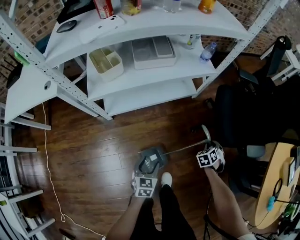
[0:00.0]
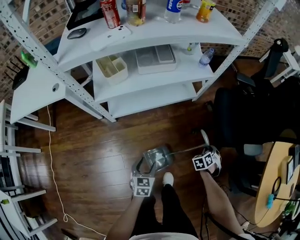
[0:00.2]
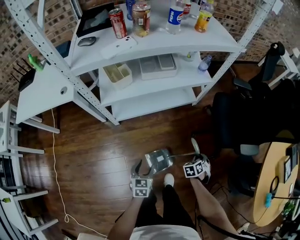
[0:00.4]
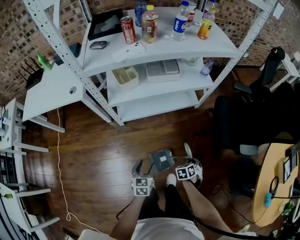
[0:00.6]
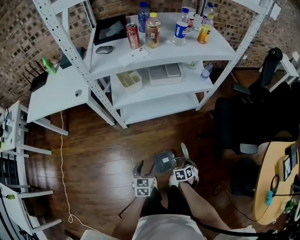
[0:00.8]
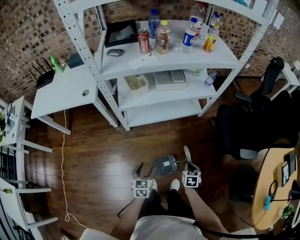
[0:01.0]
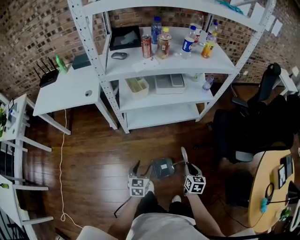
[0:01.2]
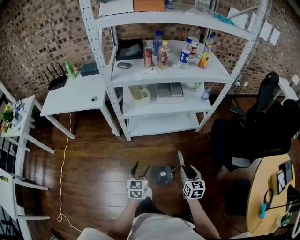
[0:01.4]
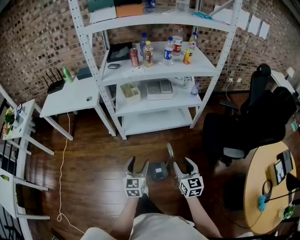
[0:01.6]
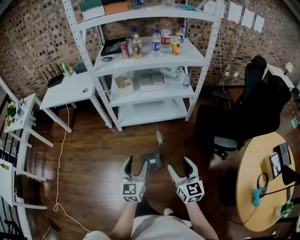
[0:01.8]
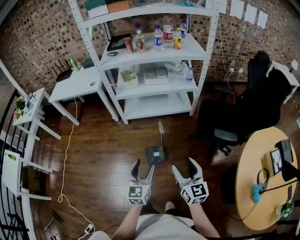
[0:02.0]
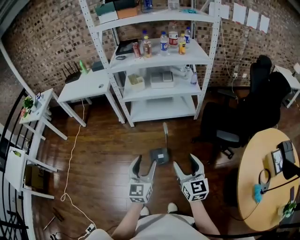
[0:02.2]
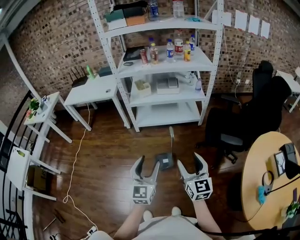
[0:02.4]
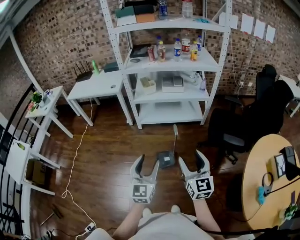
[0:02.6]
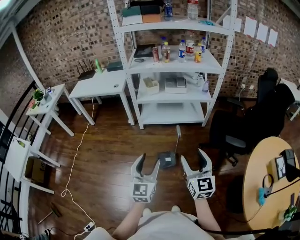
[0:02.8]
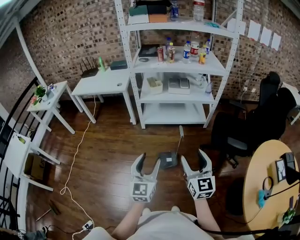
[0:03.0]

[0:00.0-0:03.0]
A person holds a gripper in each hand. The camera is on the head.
0:00.0 to 0:01.6: The grippers both shift upward by approximately 35 cm. The left gripper changes its angle by roughly 30 degrees; the right gripper angles its fingers upward, by roughly 40 degrees.
0:01.6 to 0:03.0: Both grippers move backward and upward, approximately 30 cm.

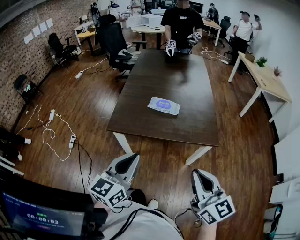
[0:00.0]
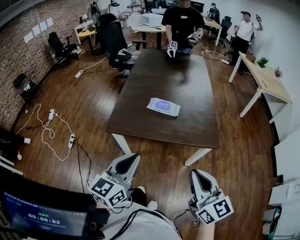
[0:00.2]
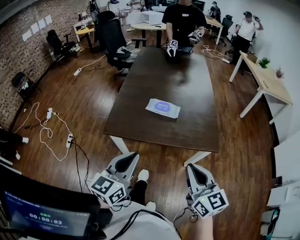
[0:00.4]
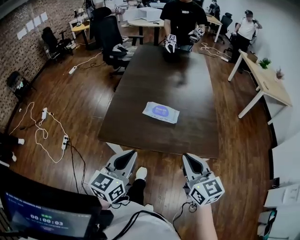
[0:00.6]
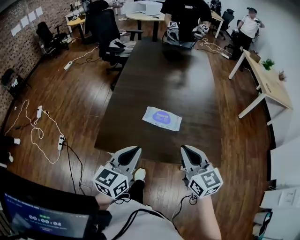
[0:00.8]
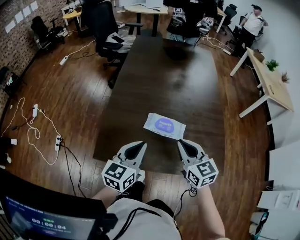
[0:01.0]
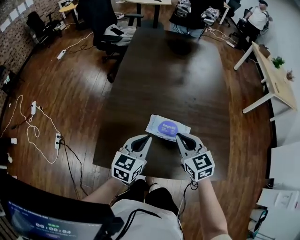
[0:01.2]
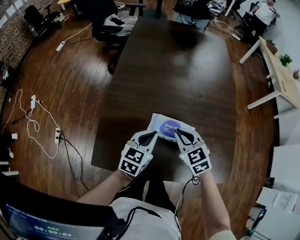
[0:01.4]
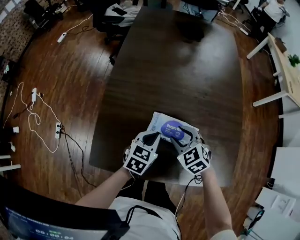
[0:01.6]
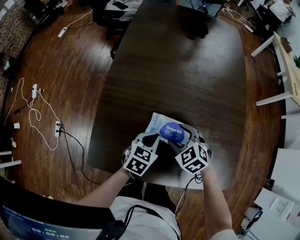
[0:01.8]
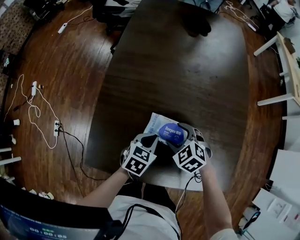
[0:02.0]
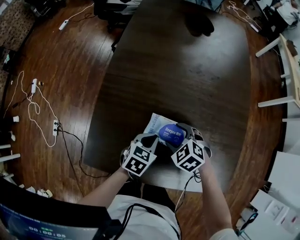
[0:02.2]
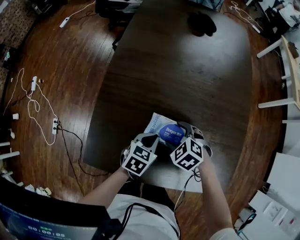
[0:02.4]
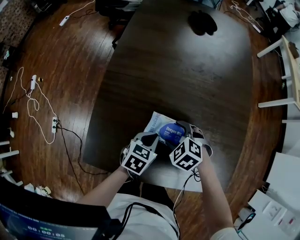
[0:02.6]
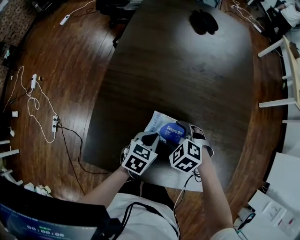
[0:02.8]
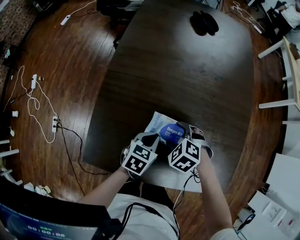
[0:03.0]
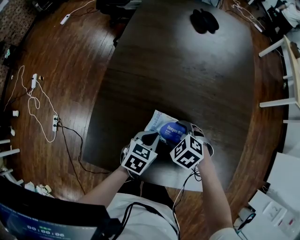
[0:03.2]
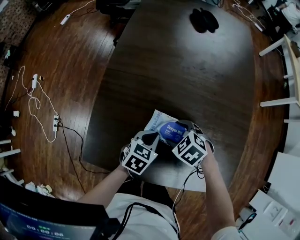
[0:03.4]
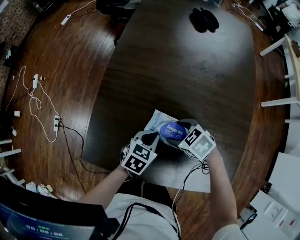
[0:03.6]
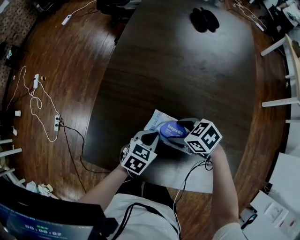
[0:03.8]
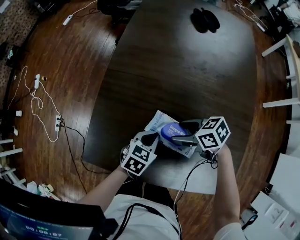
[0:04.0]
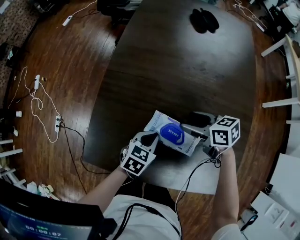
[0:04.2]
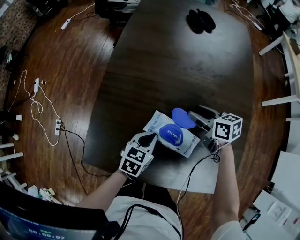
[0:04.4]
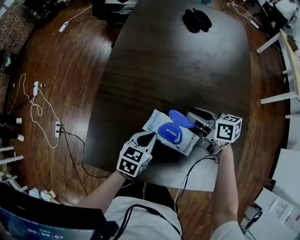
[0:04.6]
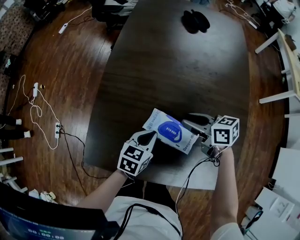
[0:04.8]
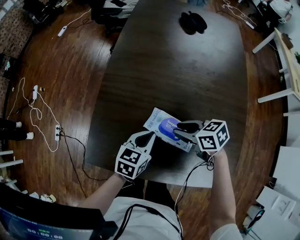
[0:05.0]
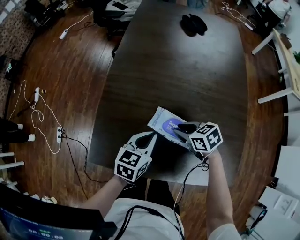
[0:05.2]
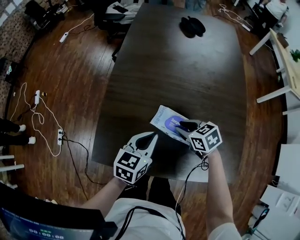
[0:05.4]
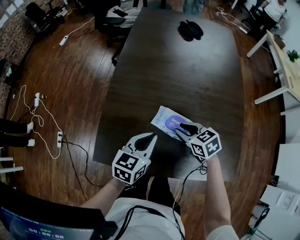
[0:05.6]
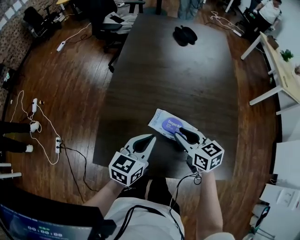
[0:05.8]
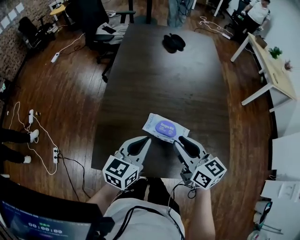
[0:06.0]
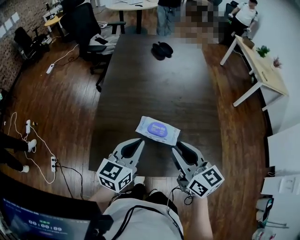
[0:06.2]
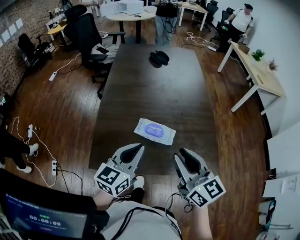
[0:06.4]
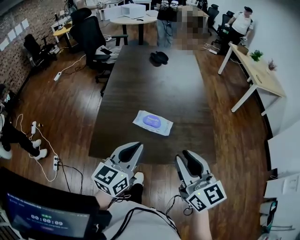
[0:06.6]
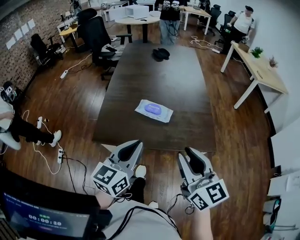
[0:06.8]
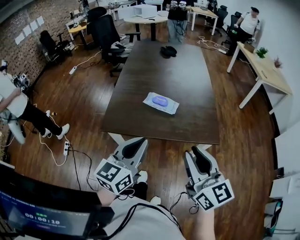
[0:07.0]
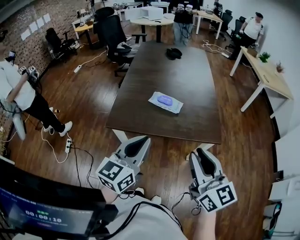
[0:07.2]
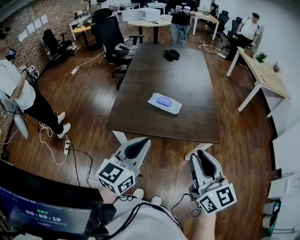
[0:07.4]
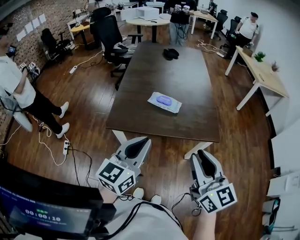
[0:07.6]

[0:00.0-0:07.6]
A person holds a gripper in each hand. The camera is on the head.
0:00.0 to 0:01.6: Both grippers are carried forward, approximately 50 cm. Both grippers travel together downward, about 30 cm. The left gripper tips its fingers downward by approximately 30 degrees. Meanwhile the right gripper points its fingers roughly 50 degrees further downward, and opens up.
0:01.6 to 0:03.0: Both grippers travel together downward, about 5 cm. The right gripper changes its angle by roughly 30 degrees, and opens its fingers.
0:03.0 to 0:04.6: The right gripper ends up roughly 15 cm from where it was, angles its fingers upward, by approximately 40 degrees, and closes its fingers.
0:04.6 to 0:06.0: The right gripper moves backward and upward, approximately 25 cm, and rotates approximately 30 degrees; the left gripper moves upward, about 20 cm, and swivels some 30 degrees.
0:06.0 to 0:07.6: The two grippers go approximately 40 cm backward and upward. The right gripper rotates about 20 degrees.

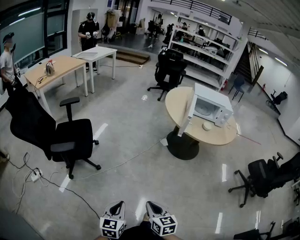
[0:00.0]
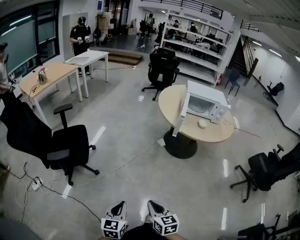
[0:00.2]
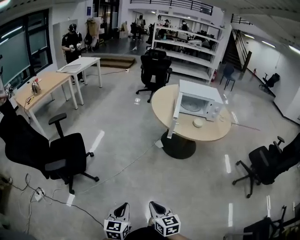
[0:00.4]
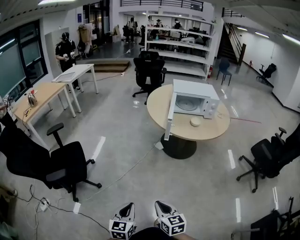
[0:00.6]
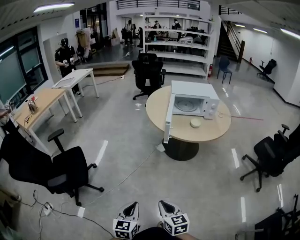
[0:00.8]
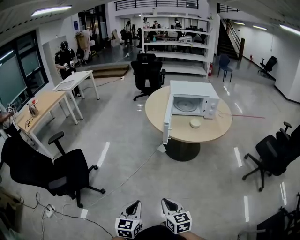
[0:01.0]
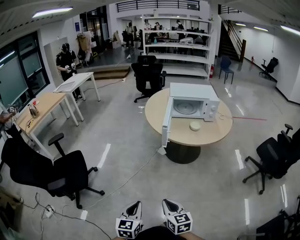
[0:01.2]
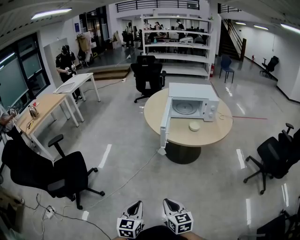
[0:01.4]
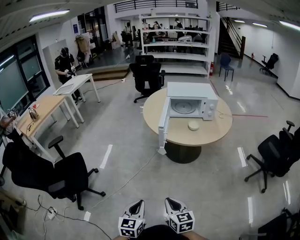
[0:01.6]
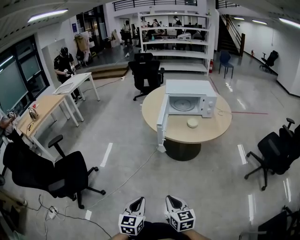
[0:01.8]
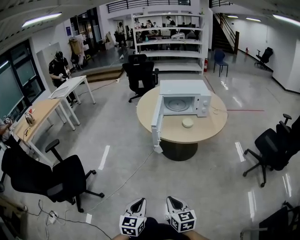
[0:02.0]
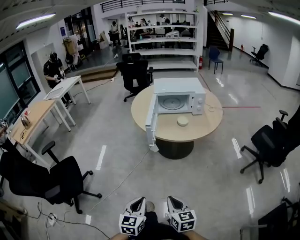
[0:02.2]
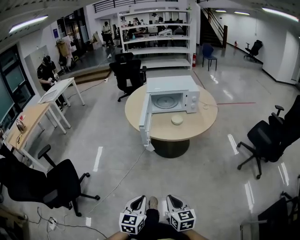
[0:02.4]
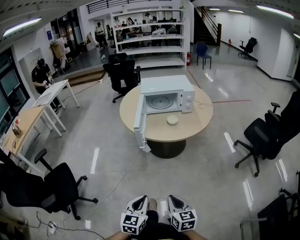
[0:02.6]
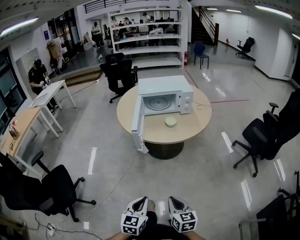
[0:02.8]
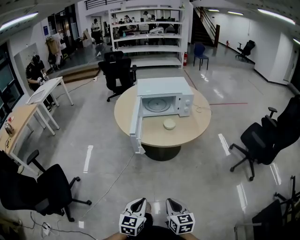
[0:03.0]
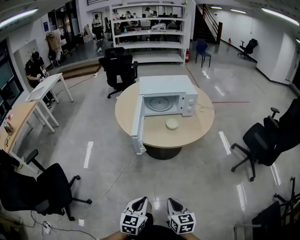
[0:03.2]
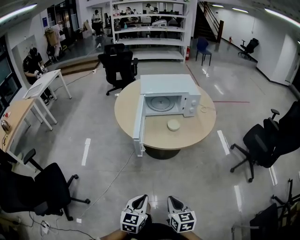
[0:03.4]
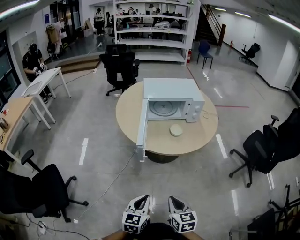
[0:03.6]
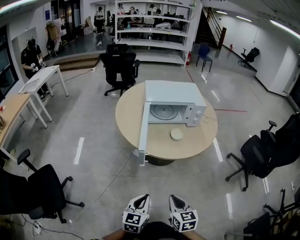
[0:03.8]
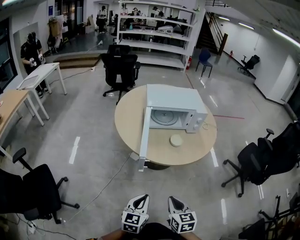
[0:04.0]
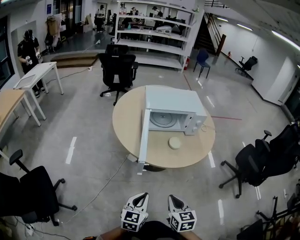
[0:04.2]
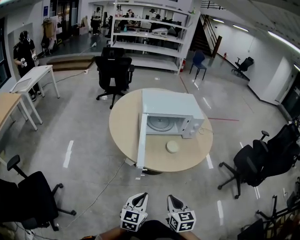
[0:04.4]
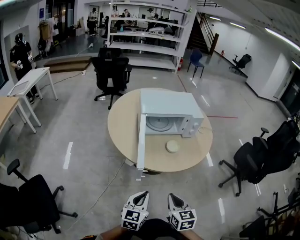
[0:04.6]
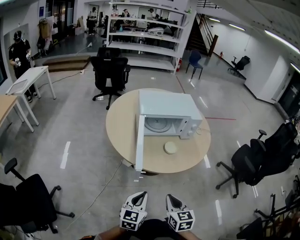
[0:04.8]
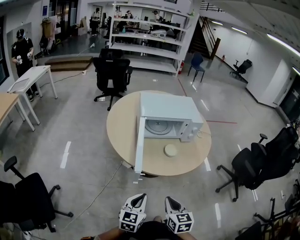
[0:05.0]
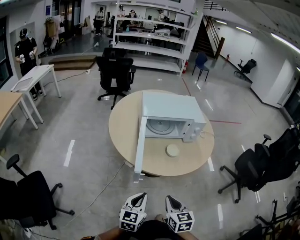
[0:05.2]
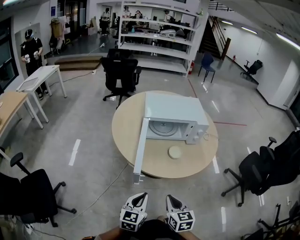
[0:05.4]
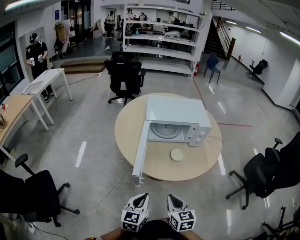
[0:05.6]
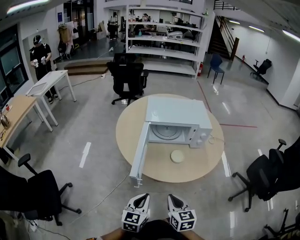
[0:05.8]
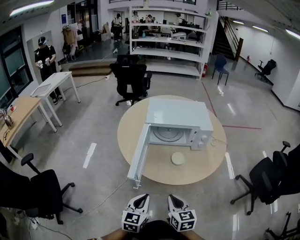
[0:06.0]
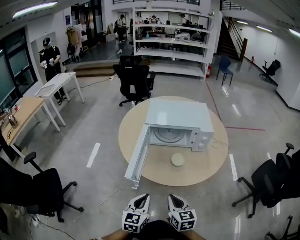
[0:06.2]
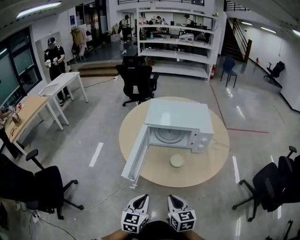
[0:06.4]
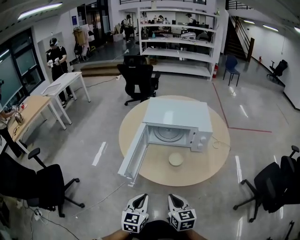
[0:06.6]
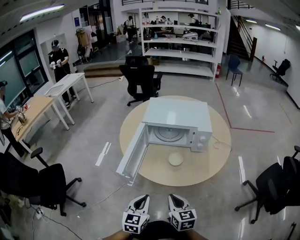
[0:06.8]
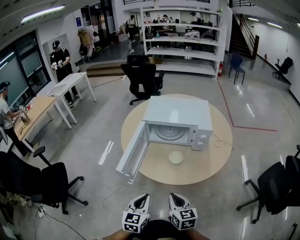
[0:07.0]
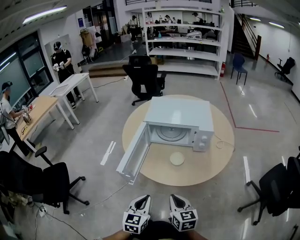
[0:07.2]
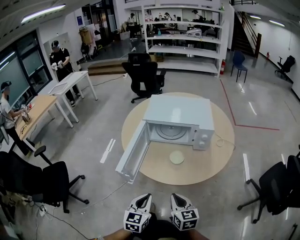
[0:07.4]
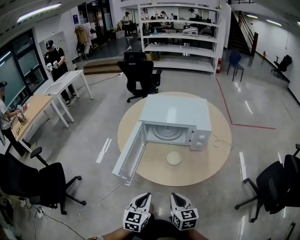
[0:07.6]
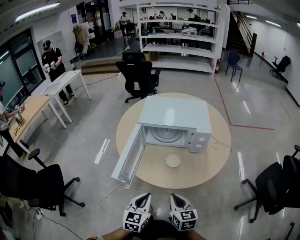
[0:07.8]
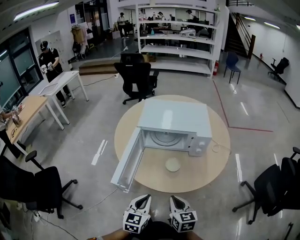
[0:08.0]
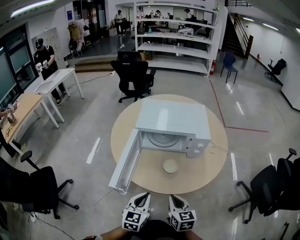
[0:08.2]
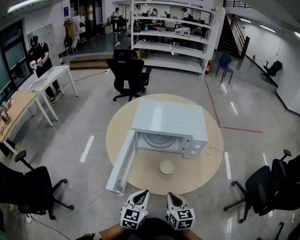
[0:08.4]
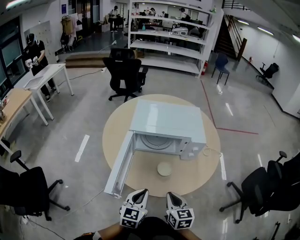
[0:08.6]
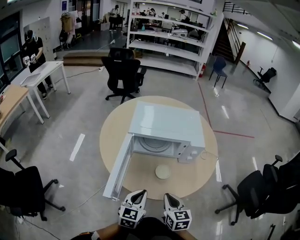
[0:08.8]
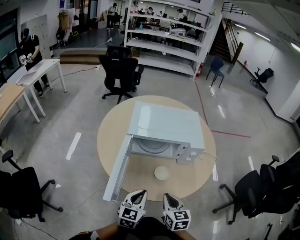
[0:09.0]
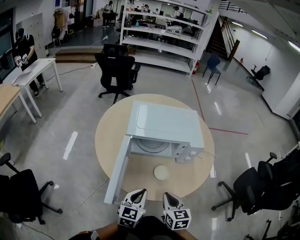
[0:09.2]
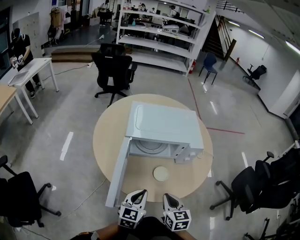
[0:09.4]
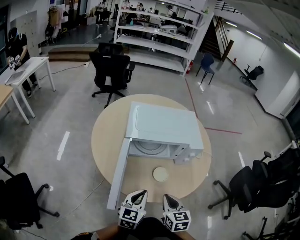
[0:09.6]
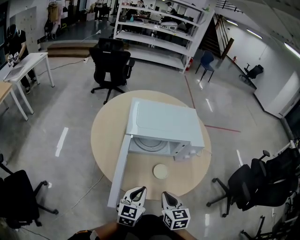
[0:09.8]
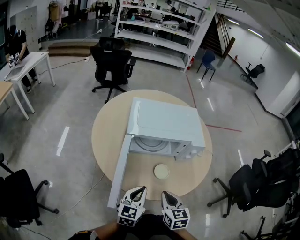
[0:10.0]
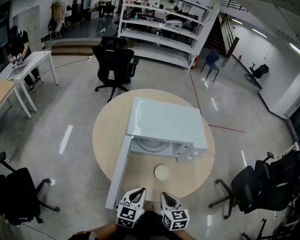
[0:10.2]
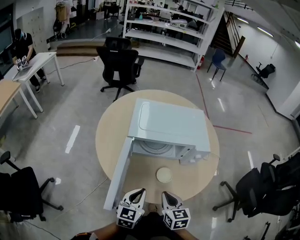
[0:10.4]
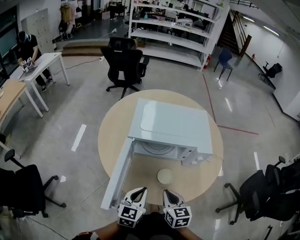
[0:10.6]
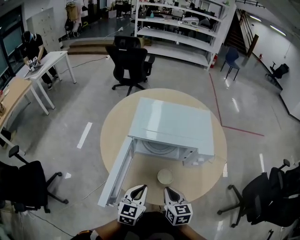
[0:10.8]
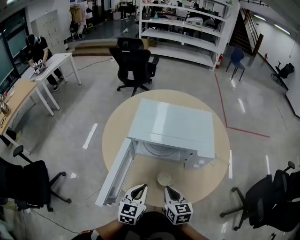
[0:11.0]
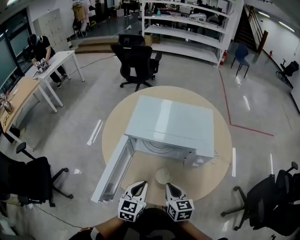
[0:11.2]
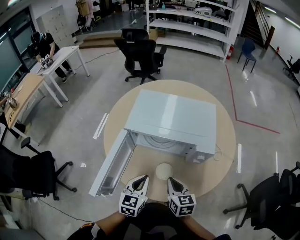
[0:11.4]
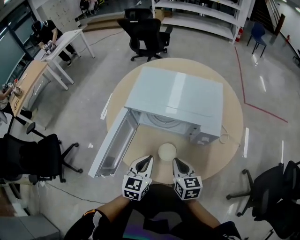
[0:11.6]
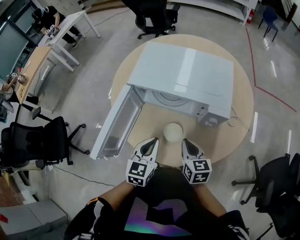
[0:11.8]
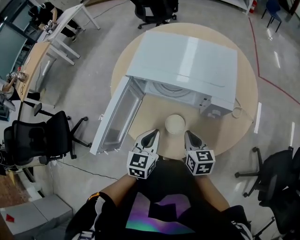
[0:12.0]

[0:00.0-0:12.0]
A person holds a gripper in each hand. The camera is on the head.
0:00.0 to 0:01.6: The two grippers go approximately 30 cm to the right and forward.
0:01.6 to 0:03.0: The left gripper travels forward and to the right by about 15 cm. Meanwhile the right gripper moves to the right and forward, about 10 cm.
0:03.0 to 0:04.4: Both grippers move forward, some 25 cm.
0:04.4 to 0:06.0: The two grippers go roughly 10 cm forward and to the right.
0:06.0 to 0:07.6: Both grippers move to the right, approximately 10 cm.
0:07.6 to 0:09.0: Both grippers travel together forward, some 15 cm.
0:09.0 to 0:10.4: The left gripper moves some 5 cm, while the right gripper changes place by roughly 5 cm.
0:10.4 to 0:12.0: The right gripper heads to the right, forward and downward, covering about 20 cm, while the left gripper moves to the right and forward, roughly 15 cm, and rotates about 20 degrees.

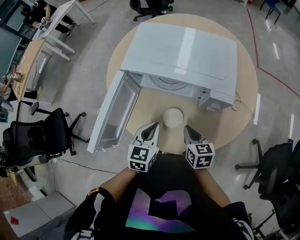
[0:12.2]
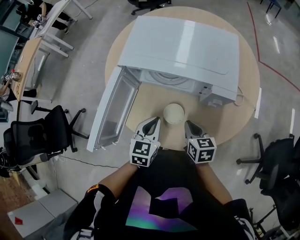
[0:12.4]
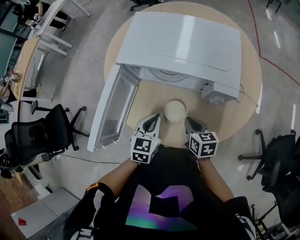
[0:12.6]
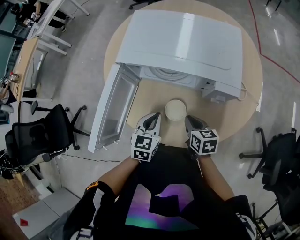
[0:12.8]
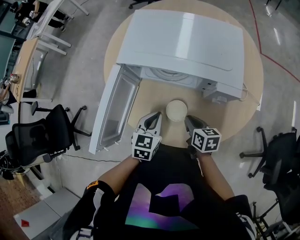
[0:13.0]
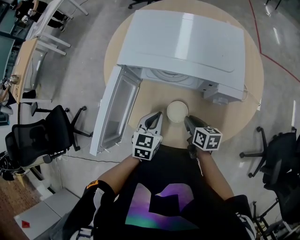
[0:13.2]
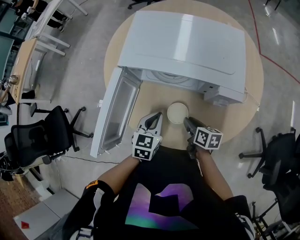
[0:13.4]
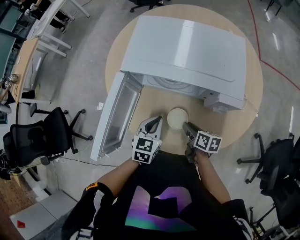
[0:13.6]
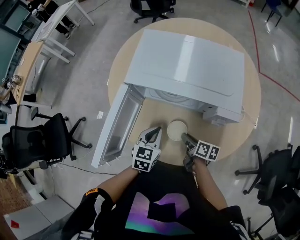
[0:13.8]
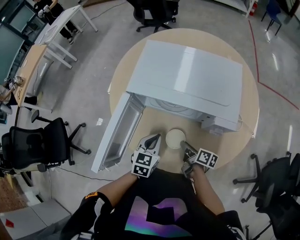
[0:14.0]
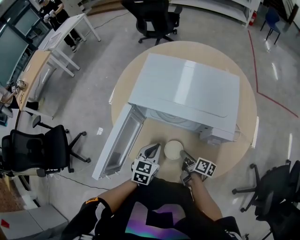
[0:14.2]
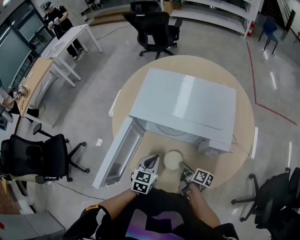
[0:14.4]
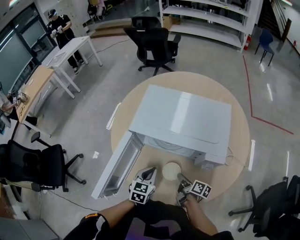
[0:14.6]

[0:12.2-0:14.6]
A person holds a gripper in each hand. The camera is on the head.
0:12.2 to 0:13.4: The left gripper shifts approximately 5 cm downward. Meanwhile the right gripper goes approximately 10 cm downward, and rotates about 30 degrees.
0:13.4 to 0:14.6: The right gripper changes its angle by roughly 30 degrees.
